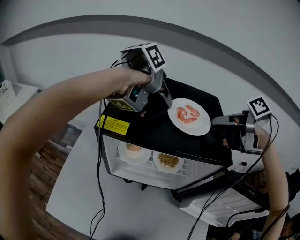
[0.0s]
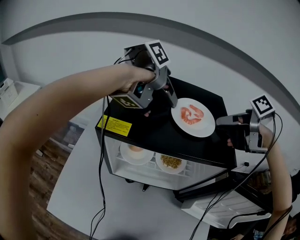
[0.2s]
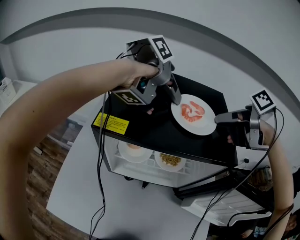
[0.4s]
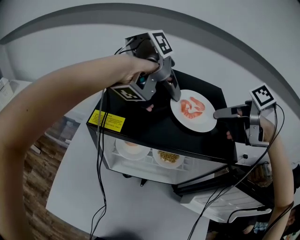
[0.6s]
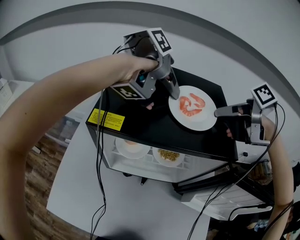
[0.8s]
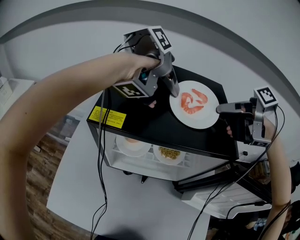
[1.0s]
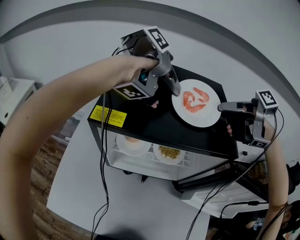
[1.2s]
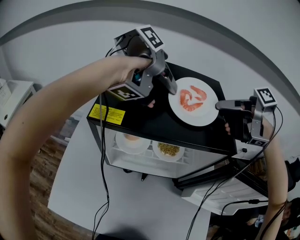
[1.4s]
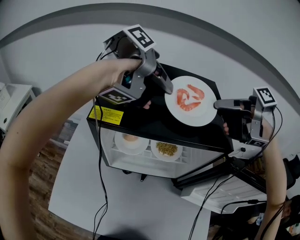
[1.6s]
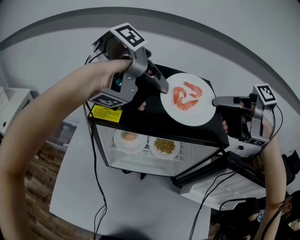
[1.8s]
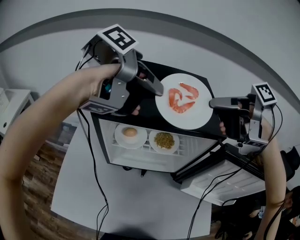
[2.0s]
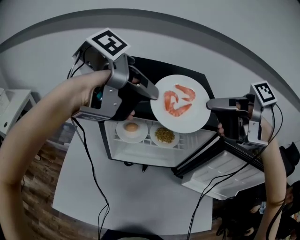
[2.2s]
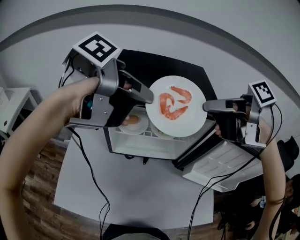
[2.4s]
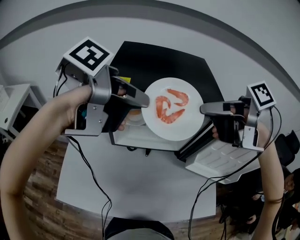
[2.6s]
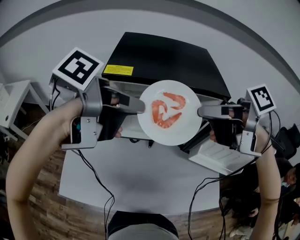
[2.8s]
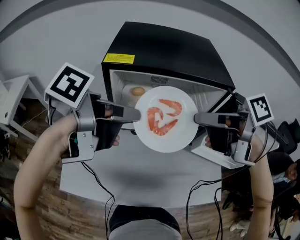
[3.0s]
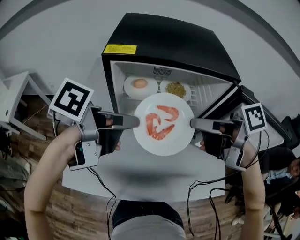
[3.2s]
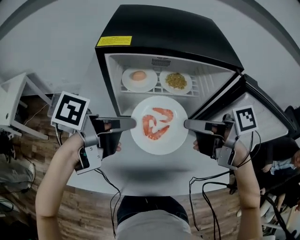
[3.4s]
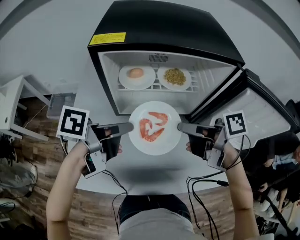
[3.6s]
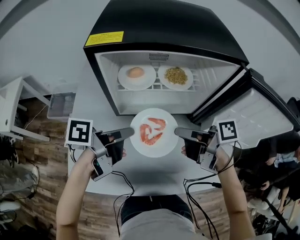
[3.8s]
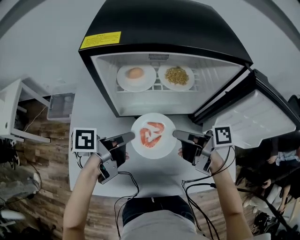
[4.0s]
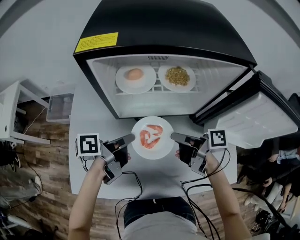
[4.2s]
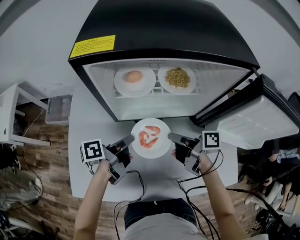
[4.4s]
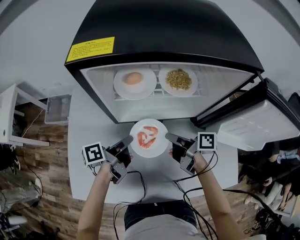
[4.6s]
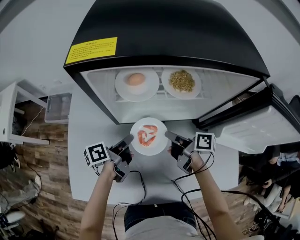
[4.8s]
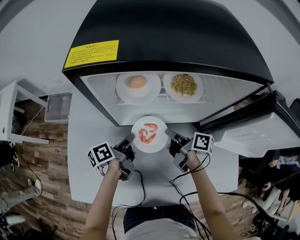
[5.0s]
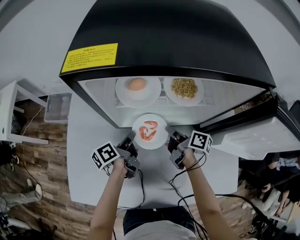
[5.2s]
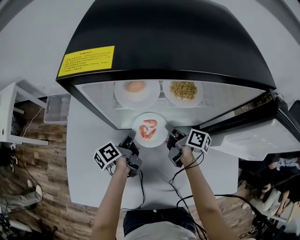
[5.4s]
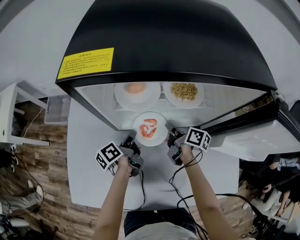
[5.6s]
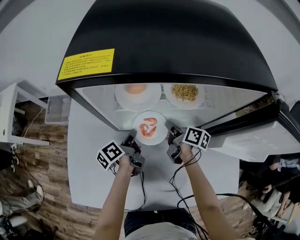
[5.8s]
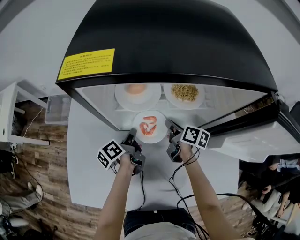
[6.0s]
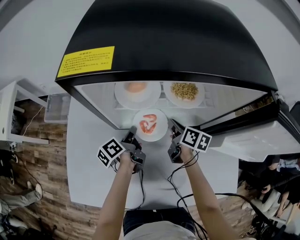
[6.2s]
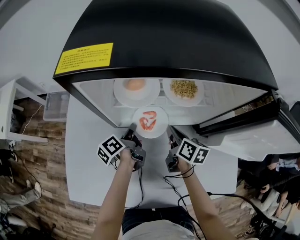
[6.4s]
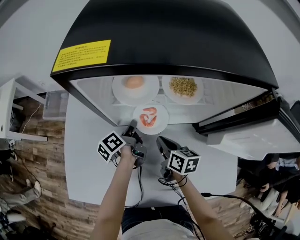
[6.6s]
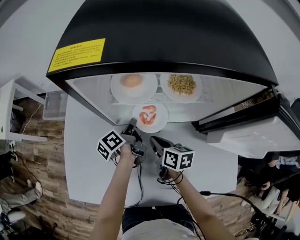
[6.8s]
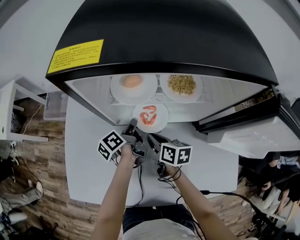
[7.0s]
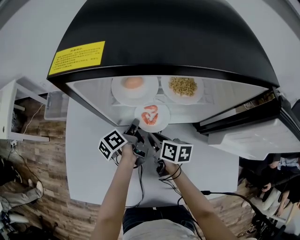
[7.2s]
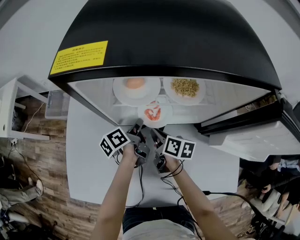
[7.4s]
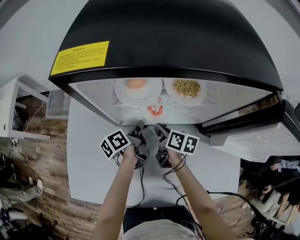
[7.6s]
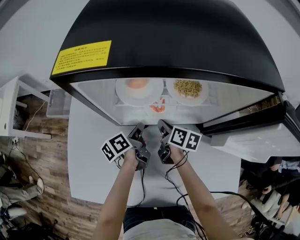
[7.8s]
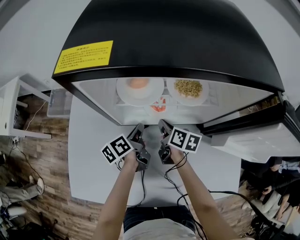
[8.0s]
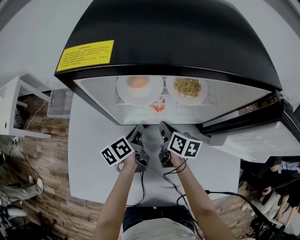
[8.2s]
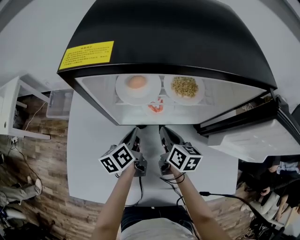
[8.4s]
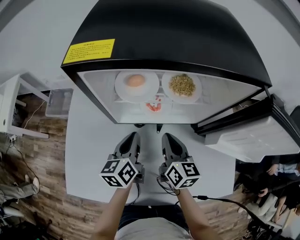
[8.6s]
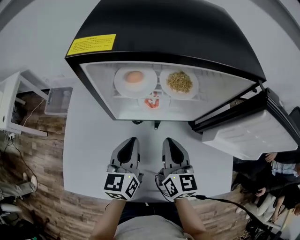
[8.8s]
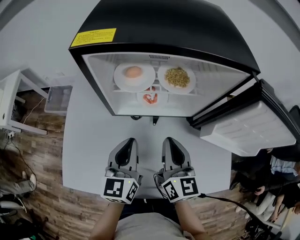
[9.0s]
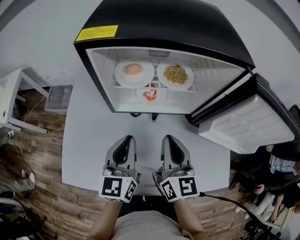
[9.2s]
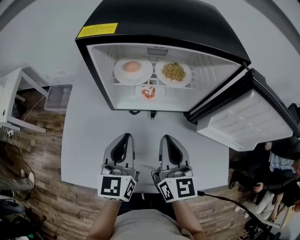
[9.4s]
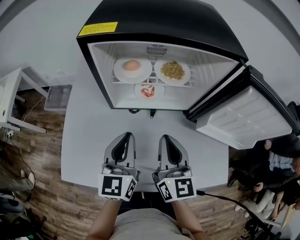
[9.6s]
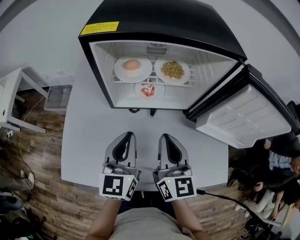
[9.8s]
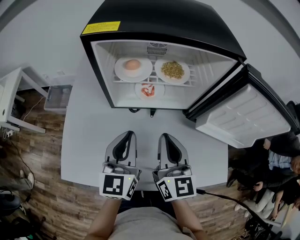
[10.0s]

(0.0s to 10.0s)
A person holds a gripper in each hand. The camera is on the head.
0.0s - 1.4s: The right gripper closes up.
1.4s - 2.8s: The grippers move only a little.
2.8s - 4.2s: Both grippers travel together downward, roughly 20 cm. The left gripper turns by roughly 30 degrees, while the right gripper turns by about 30 degrees.
4.2s - 5.8s: The grippers both shift downward and forward by roughly 15 cm. The left gripper turns by about 30 degrees. The right gripper turns by roughly 30 degrees.
5.8s - 7.2s: The right gripper goes some 10 cm to the left and backward.
7.2s - 8.6s: The left gripper travels upward and backward by roughly 10 cm, and rolls clockwise, seen from behind, by some 40 degrees, while the right gripper heads upward, covering some 10 cm, and changes its angle by some 30 degrees.
8.6s - 10.0s: The two grippers go roughly 15 cm upward and backward. The right gripper rotates approximately 20 degrees. The left gripper rotates approximately 30 degrees.

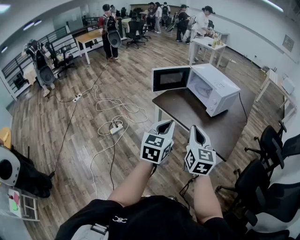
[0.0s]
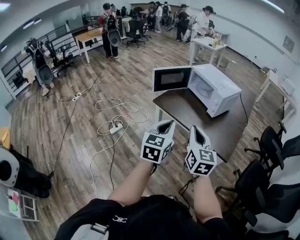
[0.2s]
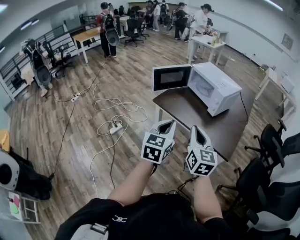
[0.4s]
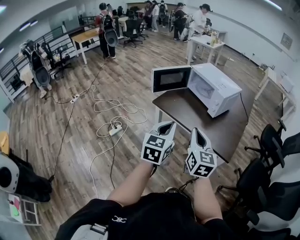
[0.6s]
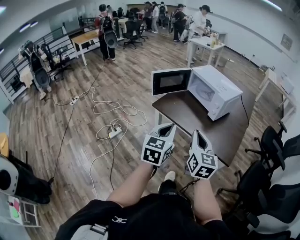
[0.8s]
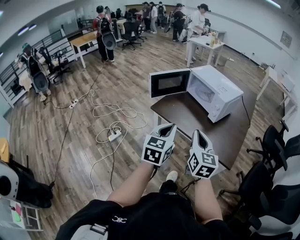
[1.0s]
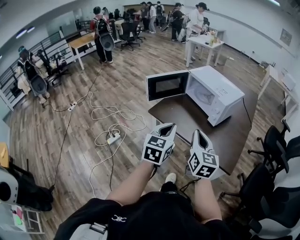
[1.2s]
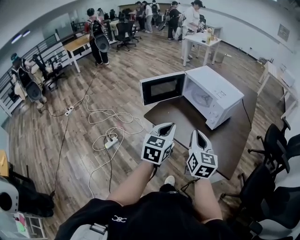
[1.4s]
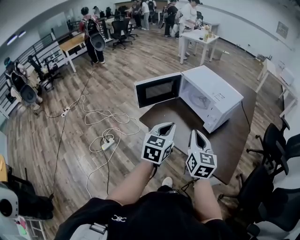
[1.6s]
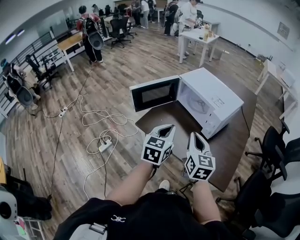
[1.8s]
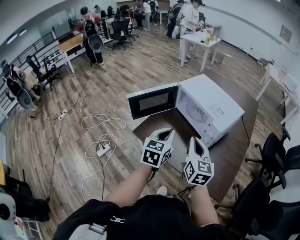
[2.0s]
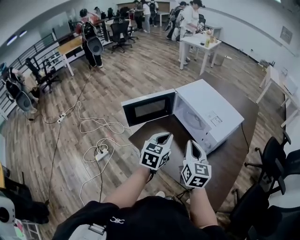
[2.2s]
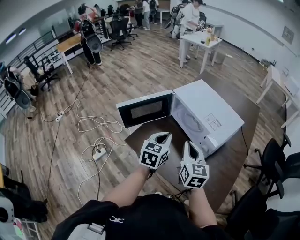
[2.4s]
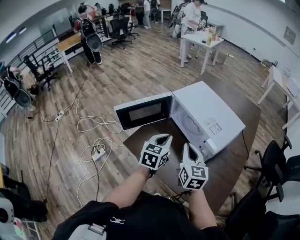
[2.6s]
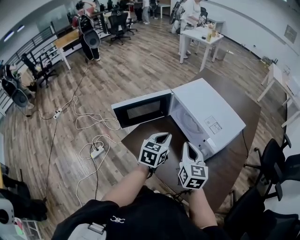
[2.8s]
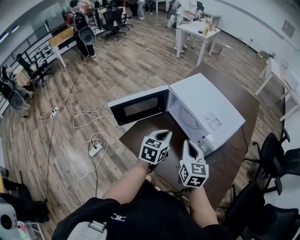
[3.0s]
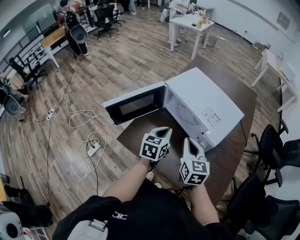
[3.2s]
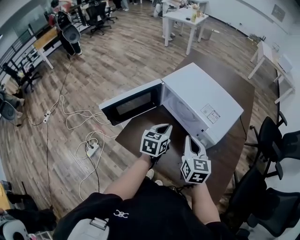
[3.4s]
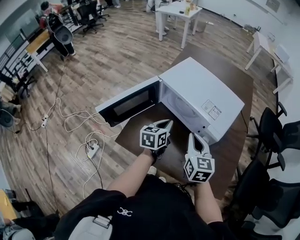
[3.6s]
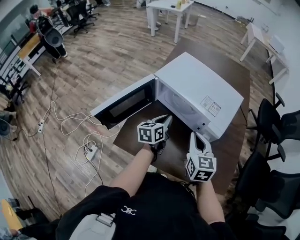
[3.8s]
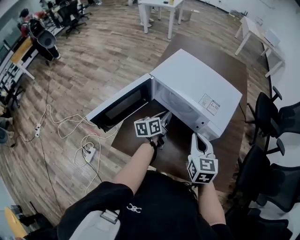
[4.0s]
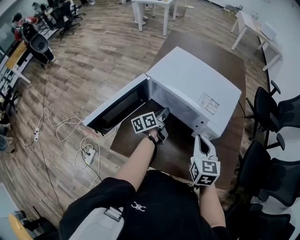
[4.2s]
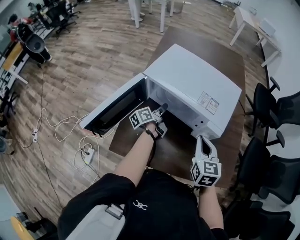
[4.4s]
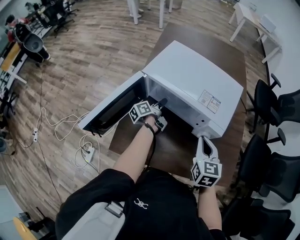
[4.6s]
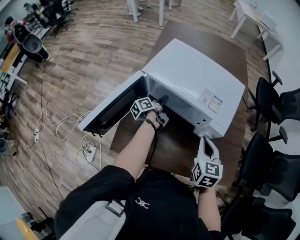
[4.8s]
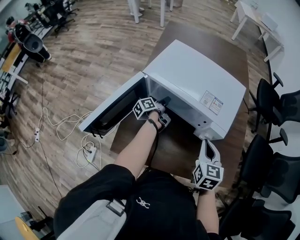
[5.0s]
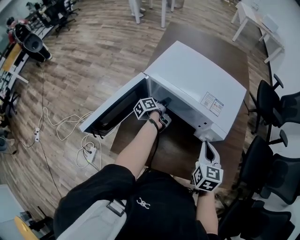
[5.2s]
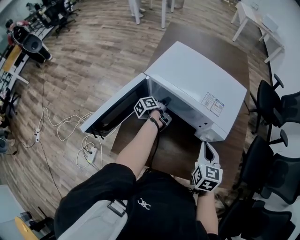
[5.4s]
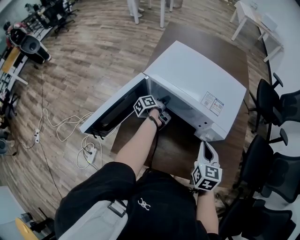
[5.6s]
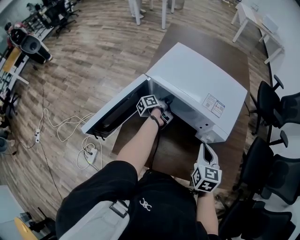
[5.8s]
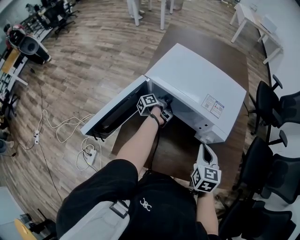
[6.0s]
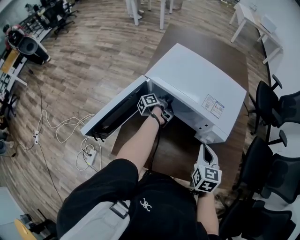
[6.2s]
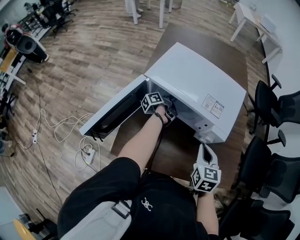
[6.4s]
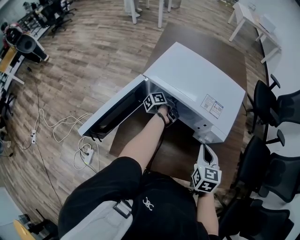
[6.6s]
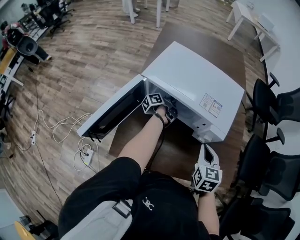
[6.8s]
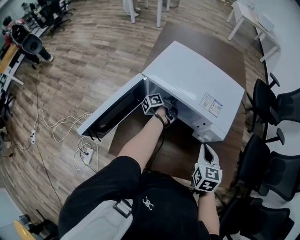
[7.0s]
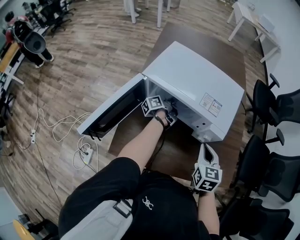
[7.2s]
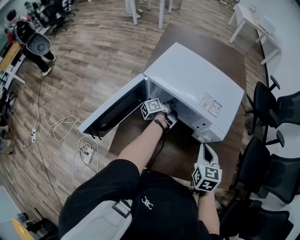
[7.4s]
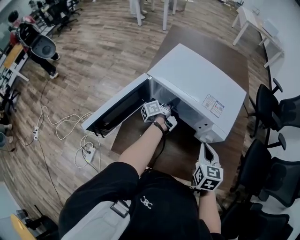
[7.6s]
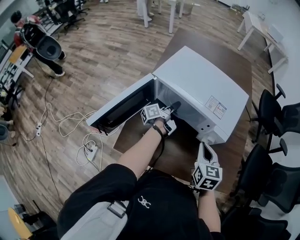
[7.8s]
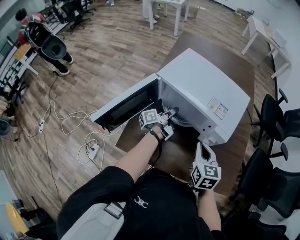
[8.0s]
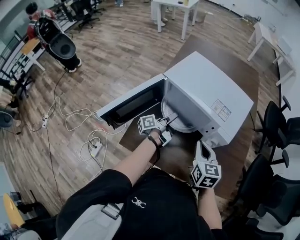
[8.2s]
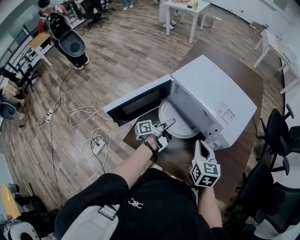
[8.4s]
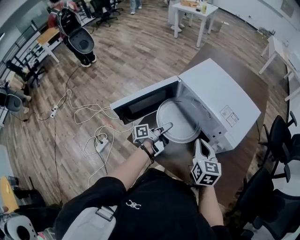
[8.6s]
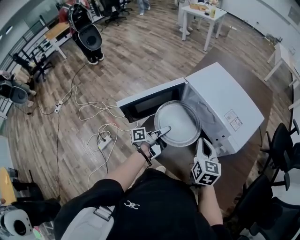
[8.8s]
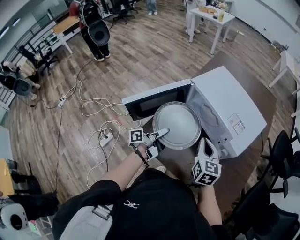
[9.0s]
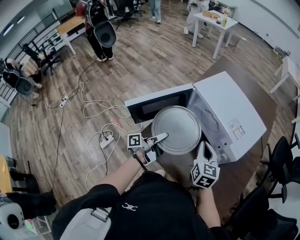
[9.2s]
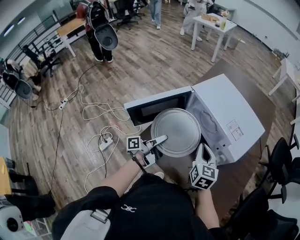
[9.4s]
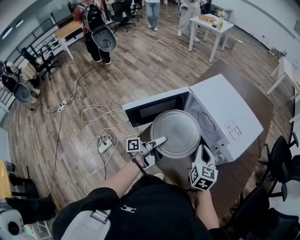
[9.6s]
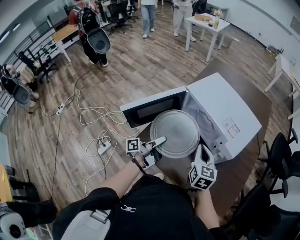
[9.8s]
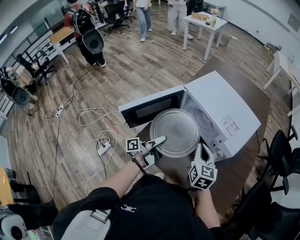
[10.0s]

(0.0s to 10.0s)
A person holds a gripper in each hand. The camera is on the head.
0.0s - 1.4s: Both grippers travel together forward, some 20 cm.
1.4s - 2.8s: The two grippers go roughly 30 cm forward.
2.8s - 4.2s: The left gripper travels forward and downward by about 20 cm, and twists some 50 degrees counterclockwise, seen from behind, while the right gripper heads to the right, covering approximately 5 cm, and turns by about 20 degrees.
4.2s - 5.8s: The right gripper moves about 5 cm, while the left gripper is displaced forward and downward by approximately 10 cm, and changes its angle by roughly 30 degrees.
5.8s - 7.2s: The left gripper ends up roughly 5 cm from where it was, and closes its fingers.
7.2s - 8.6s: The right gripper goes roughly 10 cm to the left, and changes its angle by some 20 degrees. Meanwhile the left gripper moves backward and to the left, about 25 cm.
8.6s - 10.0s: The left gripper shifts some 5 cm backward.

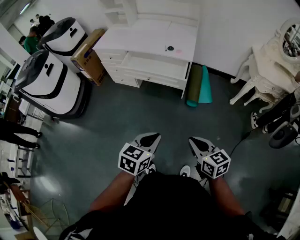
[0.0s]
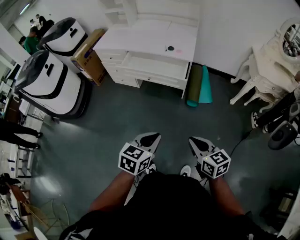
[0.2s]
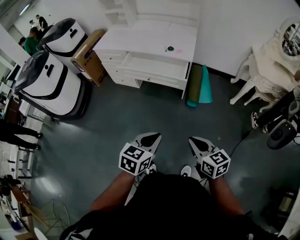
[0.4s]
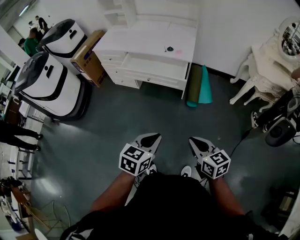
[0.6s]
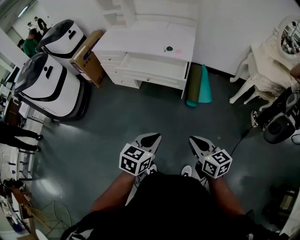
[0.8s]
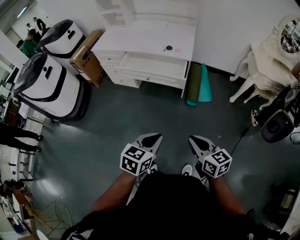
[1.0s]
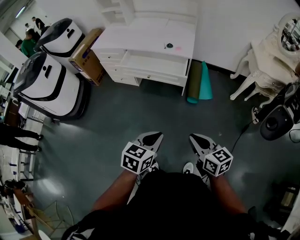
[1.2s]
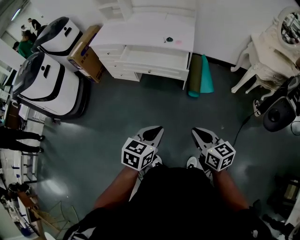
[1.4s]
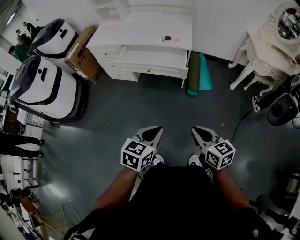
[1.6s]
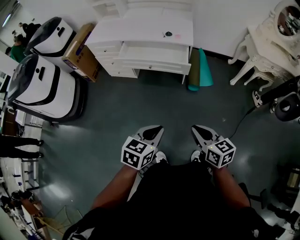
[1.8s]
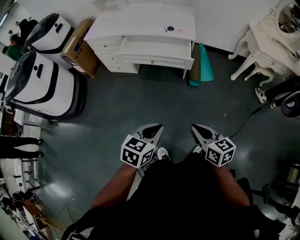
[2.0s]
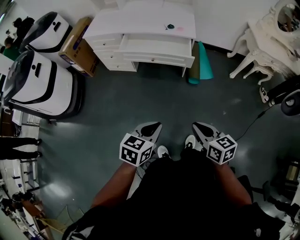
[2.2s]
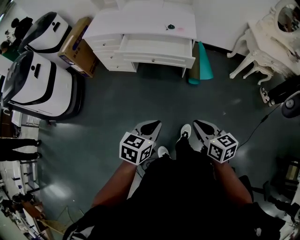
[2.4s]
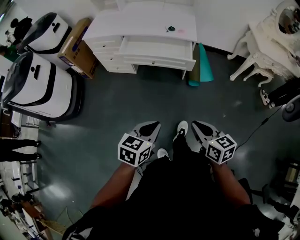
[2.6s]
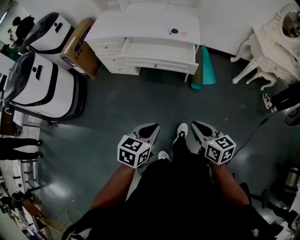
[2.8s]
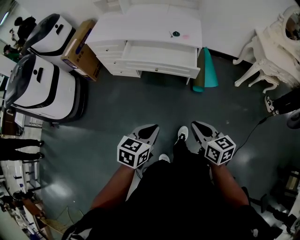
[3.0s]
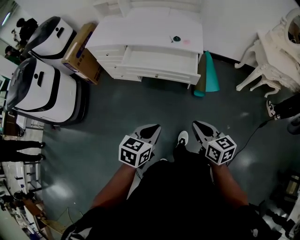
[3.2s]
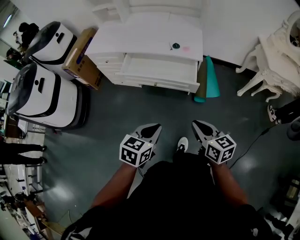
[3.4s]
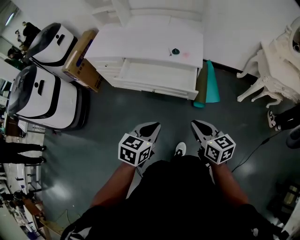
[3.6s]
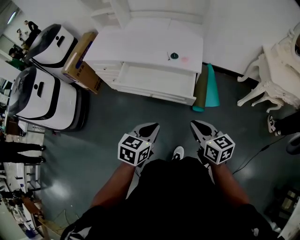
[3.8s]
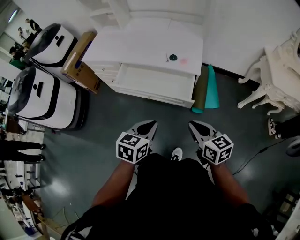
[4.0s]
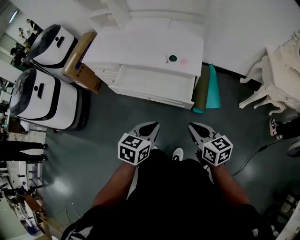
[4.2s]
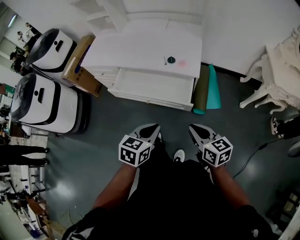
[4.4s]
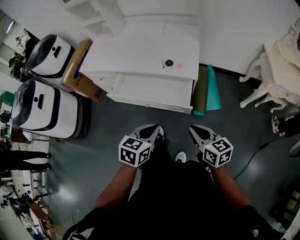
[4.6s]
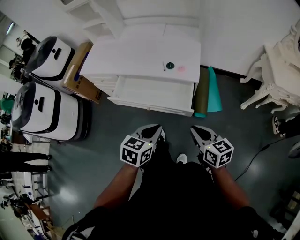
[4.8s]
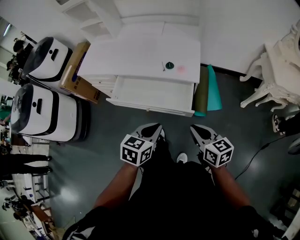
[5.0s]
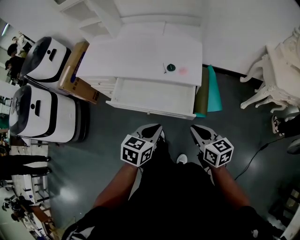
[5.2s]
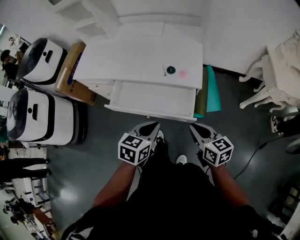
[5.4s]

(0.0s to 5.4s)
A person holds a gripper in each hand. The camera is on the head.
0.0s - 1.4s: The grippers move only a little.
1.4s - 2.8s: Both grippers move to the left, approximately 10 cm.
2.8s - 4.0s: The grippers both shift forward by some 25 cm.
4.0s - 5.4s: The grippers both shift forward by about 15 cm.
